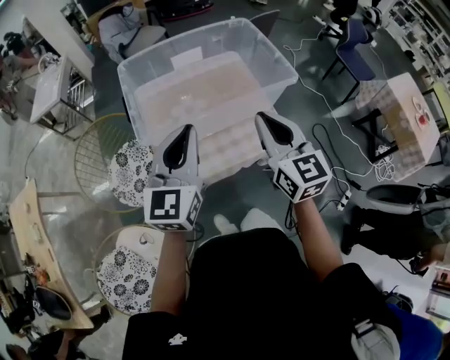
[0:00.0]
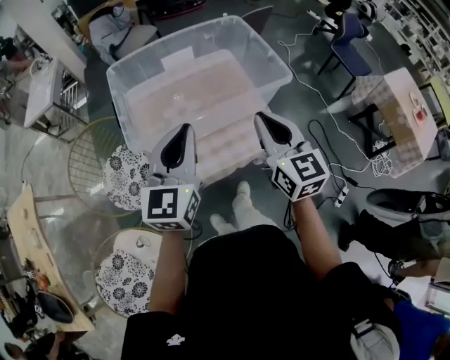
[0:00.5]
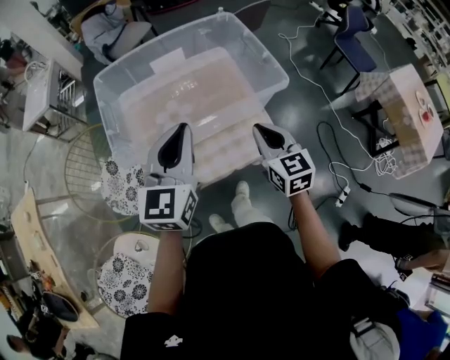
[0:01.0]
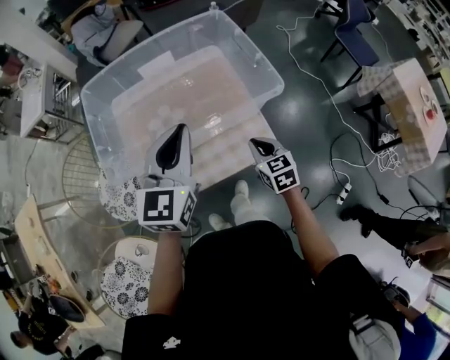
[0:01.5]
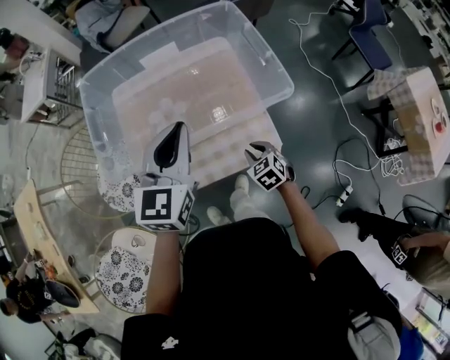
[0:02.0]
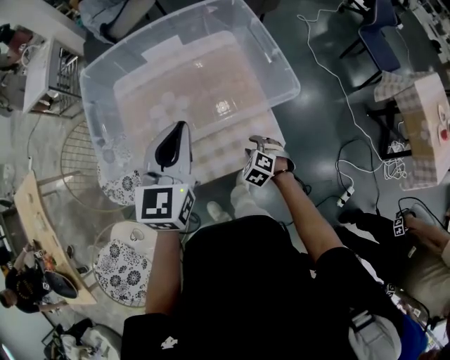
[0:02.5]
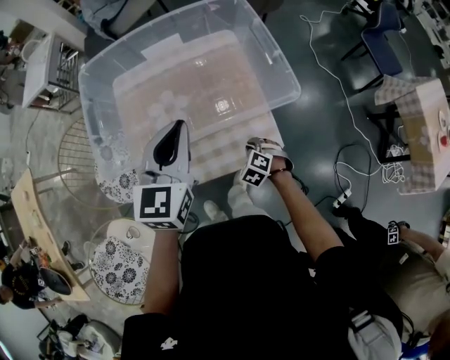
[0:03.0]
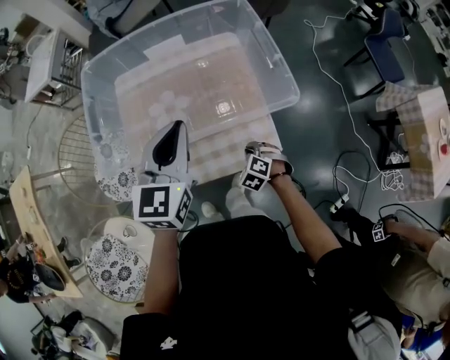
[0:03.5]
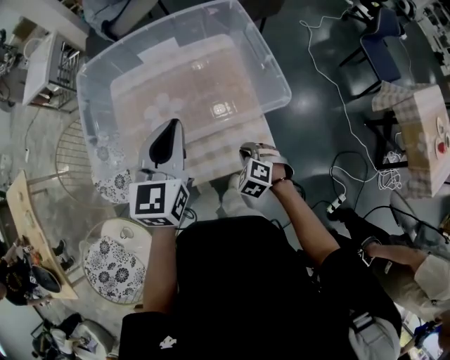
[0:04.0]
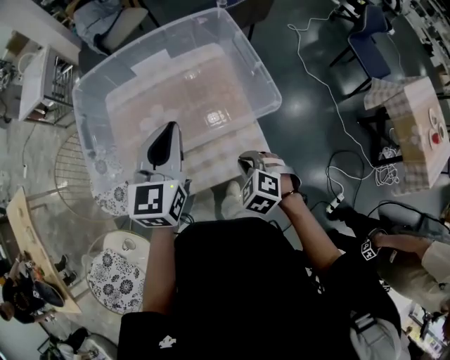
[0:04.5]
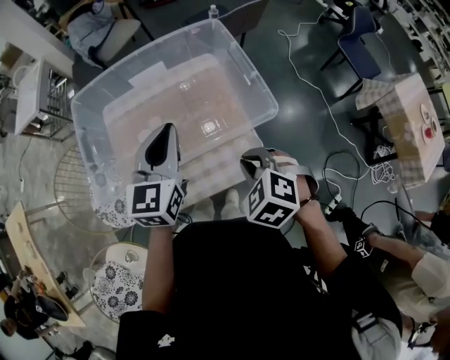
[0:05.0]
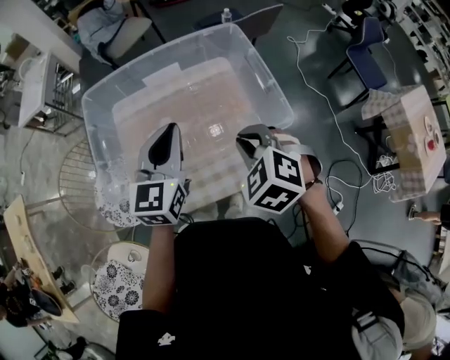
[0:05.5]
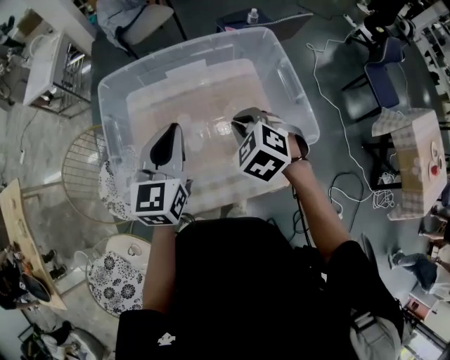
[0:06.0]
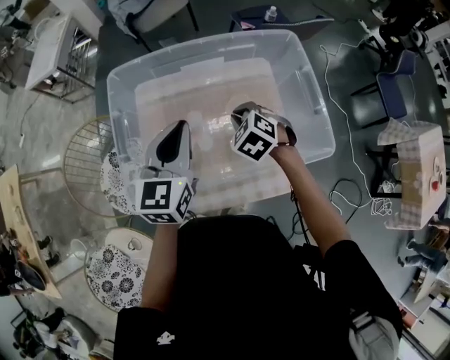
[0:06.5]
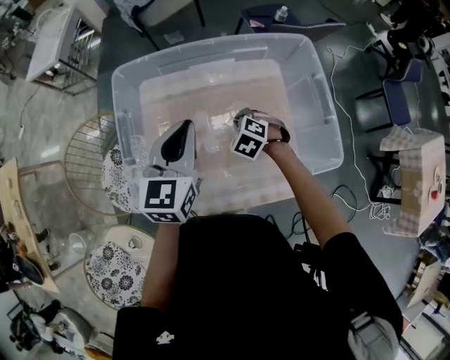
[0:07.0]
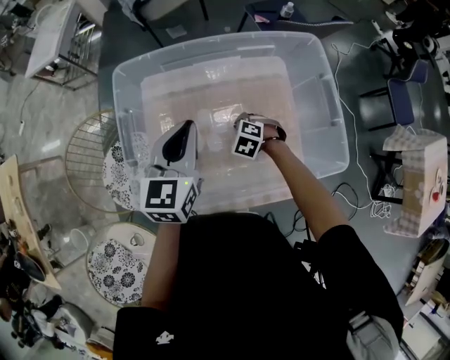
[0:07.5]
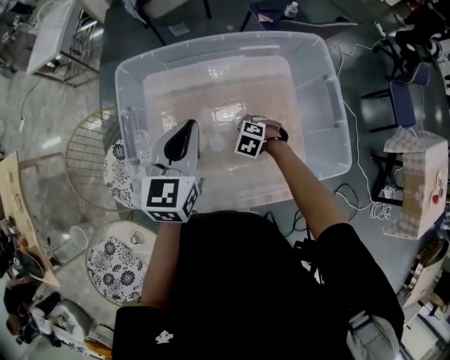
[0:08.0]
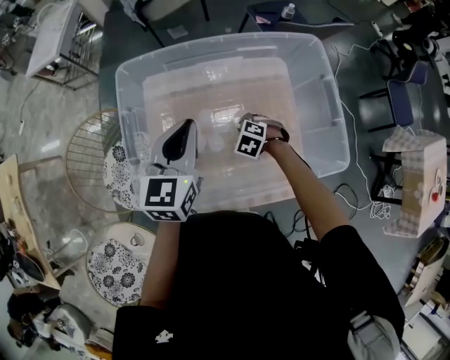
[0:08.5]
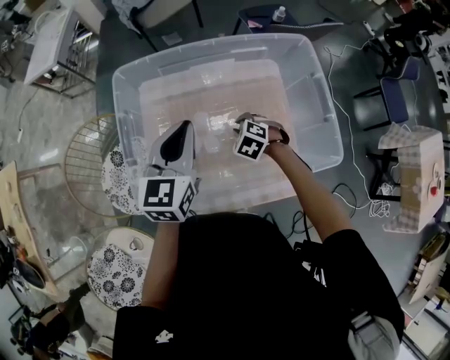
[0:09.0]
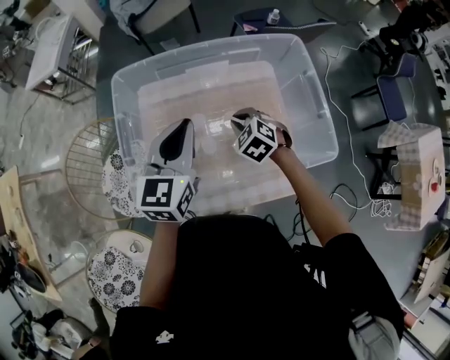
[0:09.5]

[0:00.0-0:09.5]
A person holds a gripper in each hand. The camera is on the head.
0:00.0 to 0:02.0: The left gripper goes about 20 cm forward, to the right and downward, while the right gripper moves downward, approximately 35 cm, angles its fingers downward, by roughly 50 degrees, and opens up.
0:02.0 to 0:04.0: The right gripper rotates approximately 30 degrees.
0:04.0 to 0:05.5: The left gripper heads forward, covering some 5 cm. Meanwhile the right gripper shifts approximately 25 cm upward.
0:05.5 to 0:07.5: The left gripper heads to the left, forward and downward, covering roughly 15 cm. Meanwhile the right gripper goes roughly 35 cm downward and forward, and swivels about 20 degrees.
0:07.5 to 0:09.5: The right gripper moves upward, some 15 cm, and changes its angle by about 20 degrees.

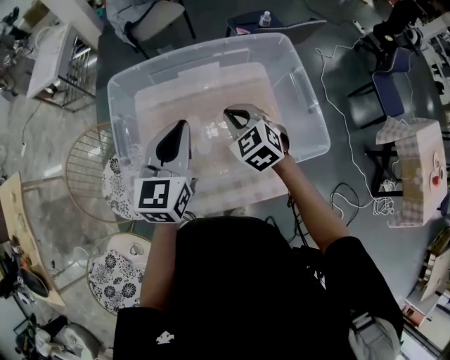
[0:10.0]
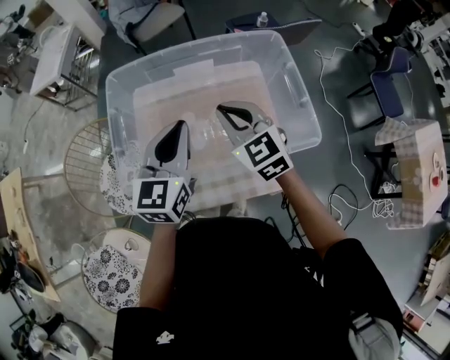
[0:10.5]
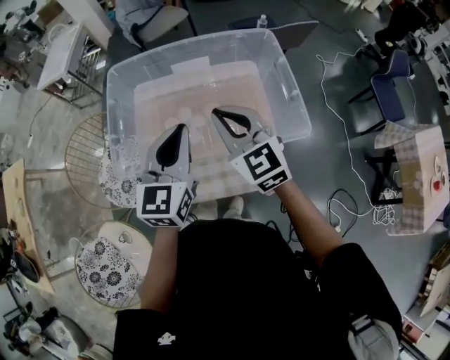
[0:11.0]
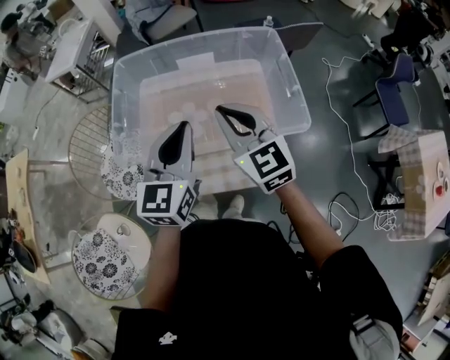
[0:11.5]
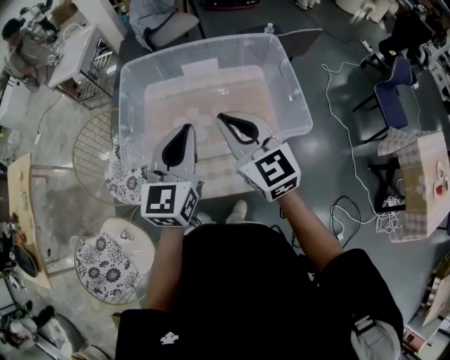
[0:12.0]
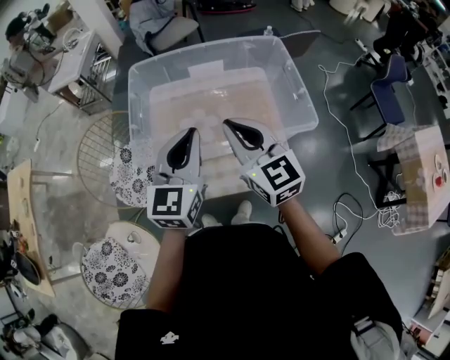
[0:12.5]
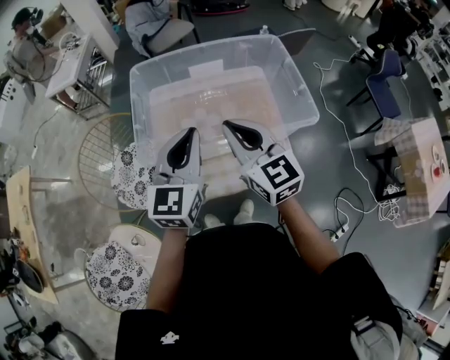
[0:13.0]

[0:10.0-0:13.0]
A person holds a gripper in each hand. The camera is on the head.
0:10.0 to 0:11.5: The left gripper is displaced backward by about 15 cm. Meanwhile the right gripper goes about 20 cm backward and upward, and changes its angle by roughly 30 degrees.
0:11.5 to 0:13.0: Both grippers travel together to the left, some 5 cm.

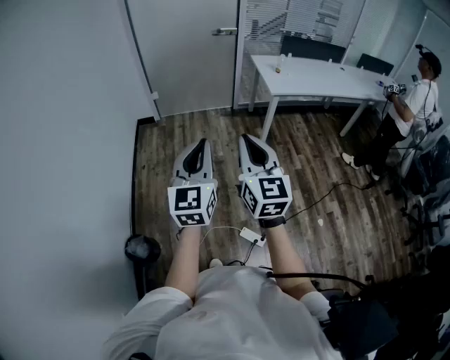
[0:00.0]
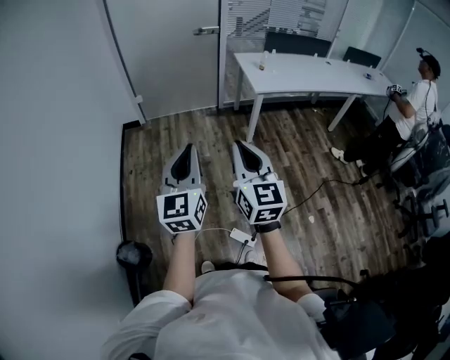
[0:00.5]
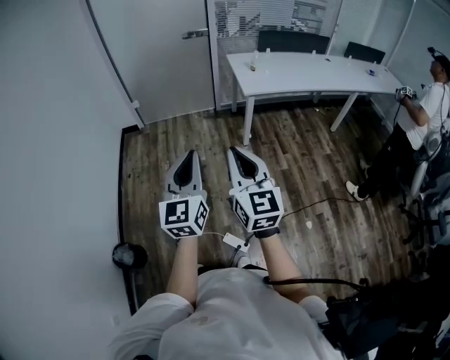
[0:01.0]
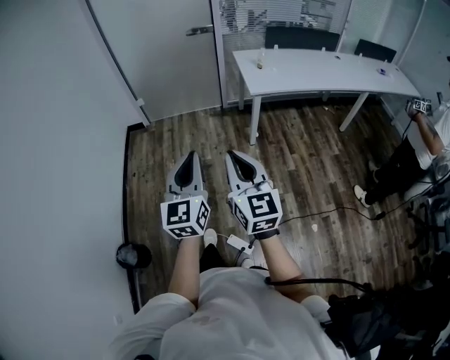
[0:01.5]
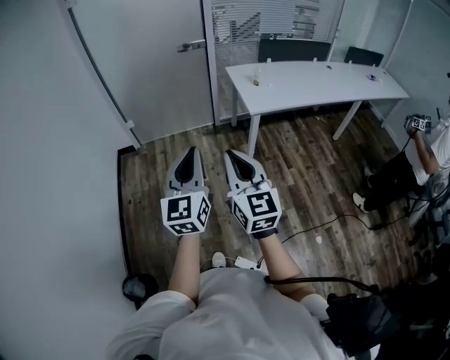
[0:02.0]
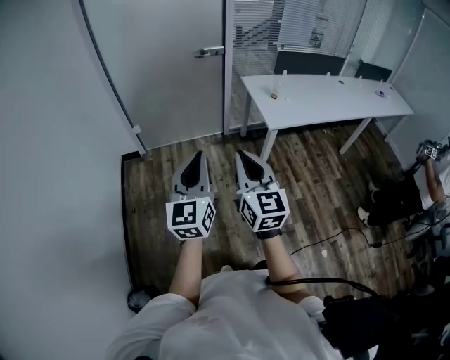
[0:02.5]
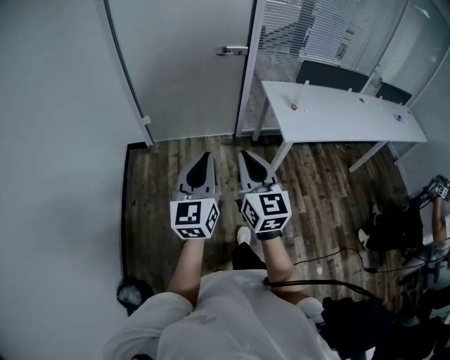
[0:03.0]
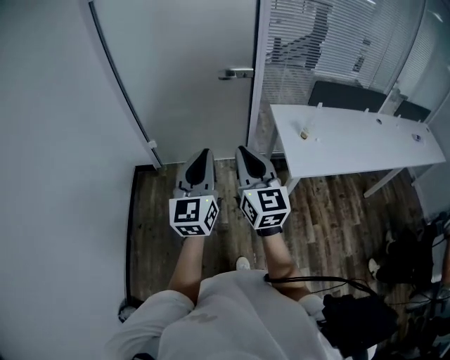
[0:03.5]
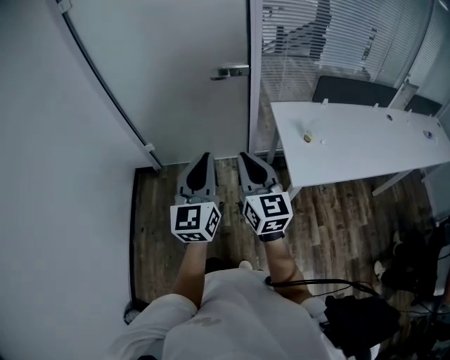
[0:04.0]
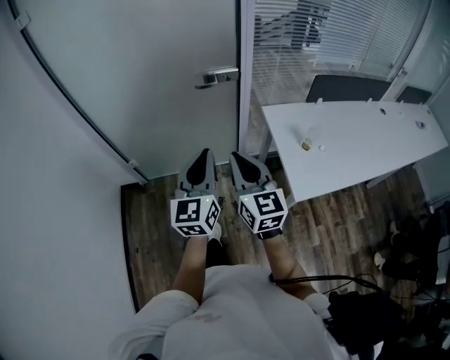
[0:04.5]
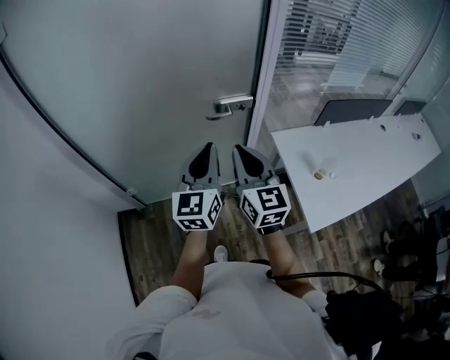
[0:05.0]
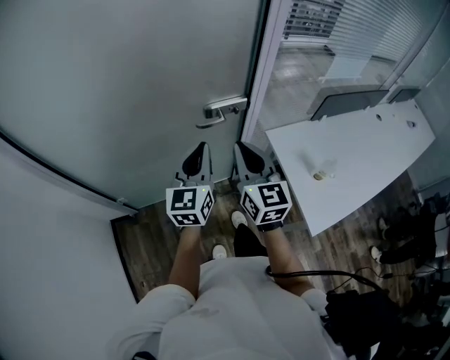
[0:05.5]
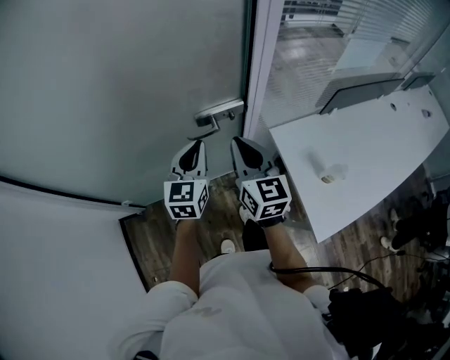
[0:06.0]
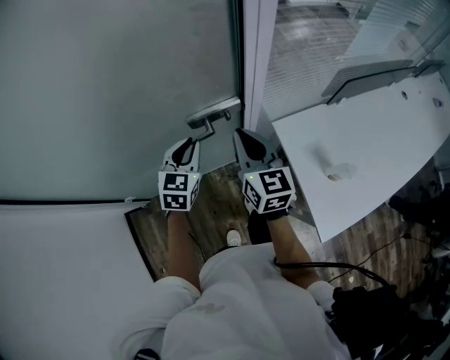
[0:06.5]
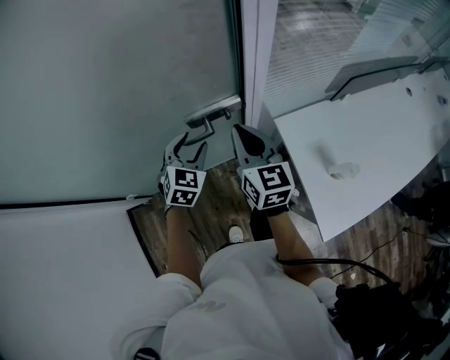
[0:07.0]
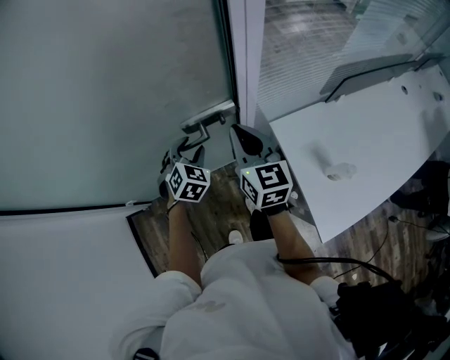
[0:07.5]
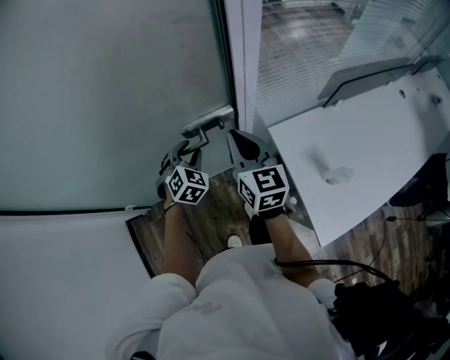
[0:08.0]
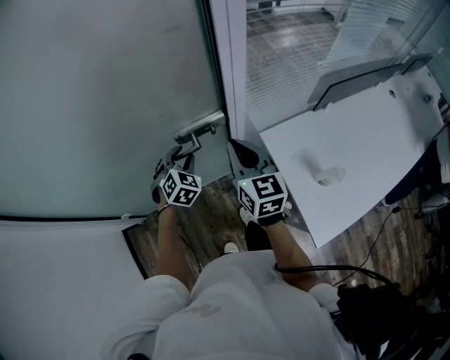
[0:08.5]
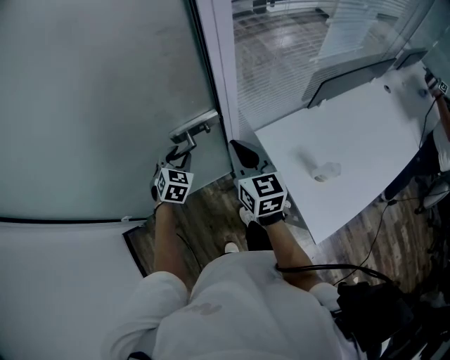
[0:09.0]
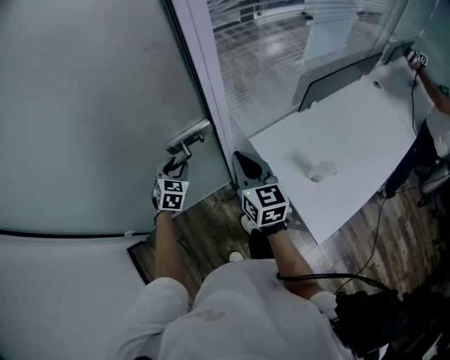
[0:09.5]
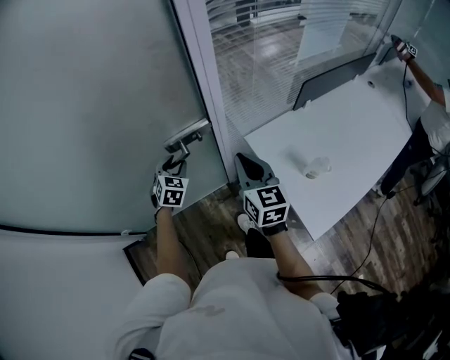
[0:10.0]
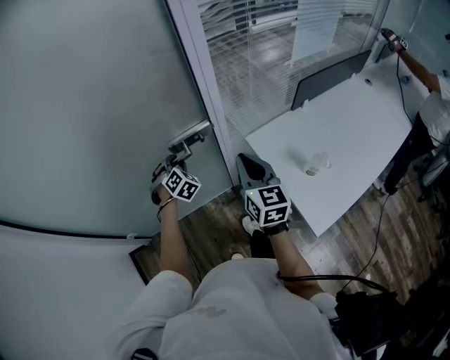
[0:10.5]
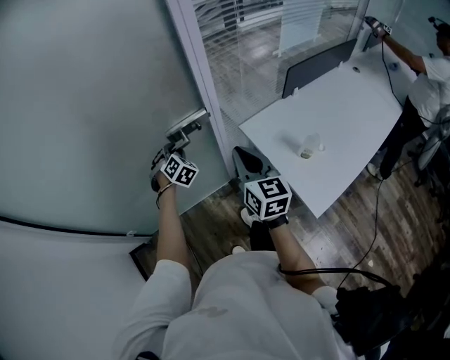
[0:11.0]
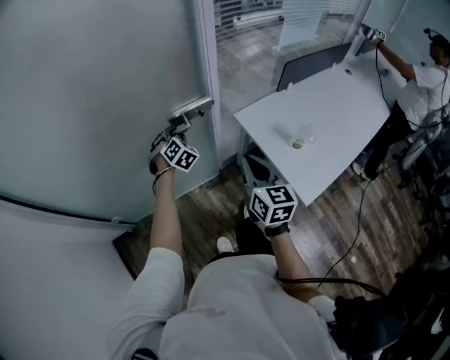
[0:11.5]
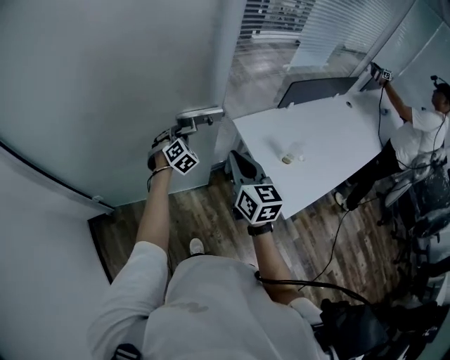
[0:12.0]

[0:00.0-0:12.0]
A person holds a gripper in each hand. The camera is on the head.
0:00.0 to 0:02.0: Both grippers travel together forward and to the right, roughly 25 cm.
0:02.0 to 0:04.0: Both grippers are carried forward, some 50 cm.
0:04.0 to 0:06.0: Both grippers are carried forward, some 50 cm. The left gripper turns by about 30 degrees.
0:06.0 to 0:08.0: The right gripper goes about 10 cm forward; the left gripper goes roughly 15 cm downward and forward, tips its fingers downward by some 30 degrees, and opens up.
0:08.0 to 0:10.0: The right gripper travels backward and to the right by about 10 cm.
0:10.0 to 0:12.0: The left gripper is displaced backward by about 10 cm, and rotates roughly 20 degrees; the right gripper travels backward by some 15 cm.

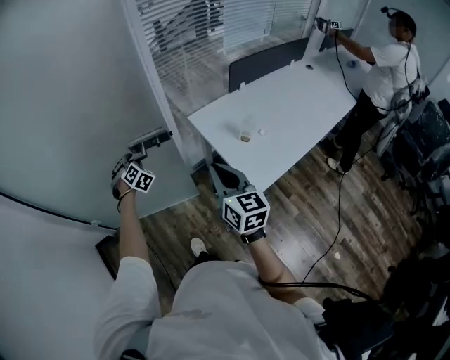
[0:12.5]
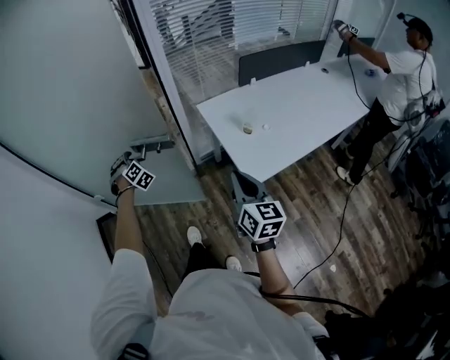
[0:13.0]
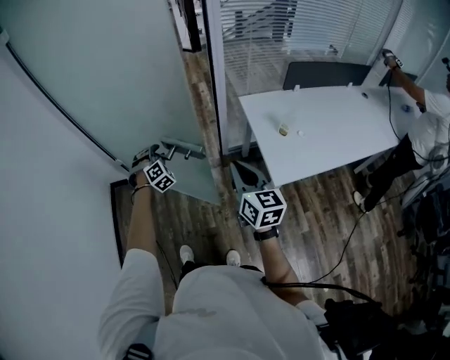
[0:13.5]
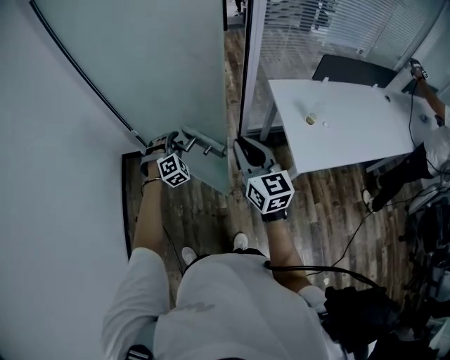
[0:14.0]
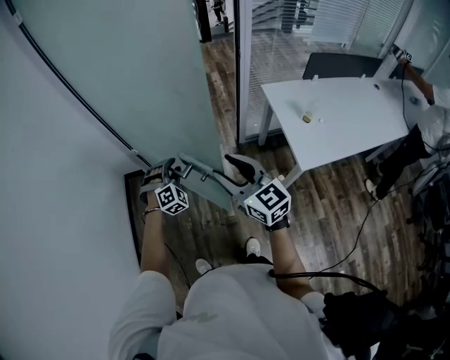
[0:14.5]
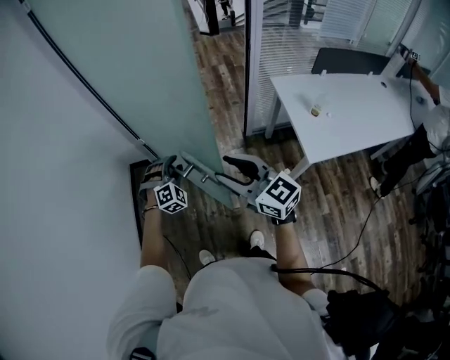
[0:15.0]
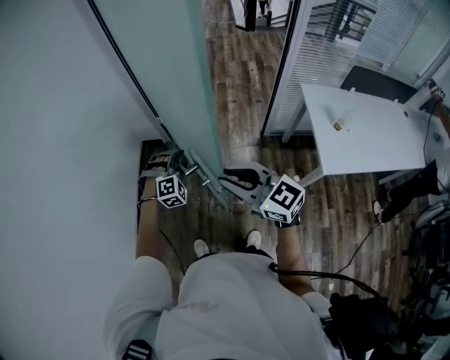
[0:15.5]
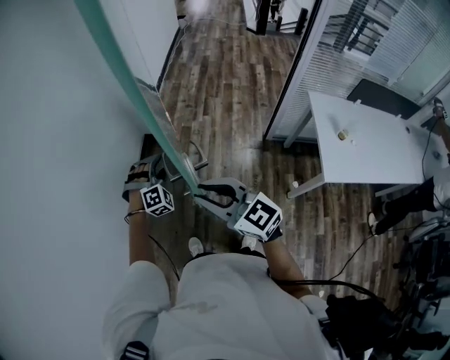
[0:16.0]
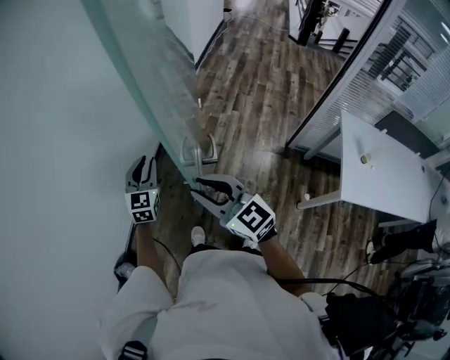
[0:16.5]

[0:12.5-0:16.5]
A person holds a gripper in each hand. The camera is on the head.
0:12.5 to 0:14.5: The left gripper is displaced backward and to the left by about 35 cm; the right gripper shifts some 30 cm to the left and backward, turns by some 40 degrees, and opens up.
0:14.5 to 0:16.5: The left gripper ends up some 40 cm from where it was, and twists some 70 degrees counterclockwise, seen from behind; the right gripper shifts by about 35 cm, changes its angle by about 40 degrees, and closes its fingers.
